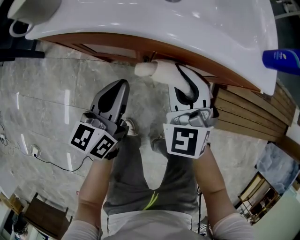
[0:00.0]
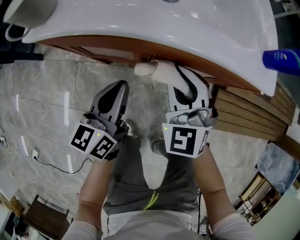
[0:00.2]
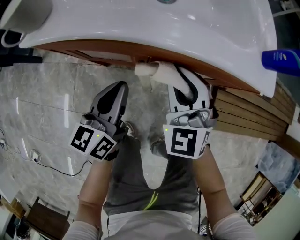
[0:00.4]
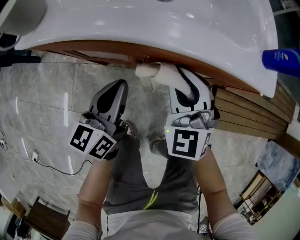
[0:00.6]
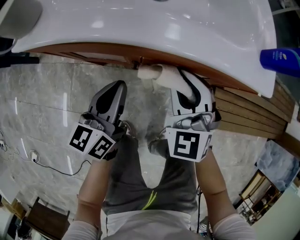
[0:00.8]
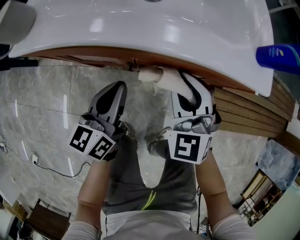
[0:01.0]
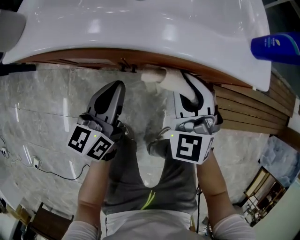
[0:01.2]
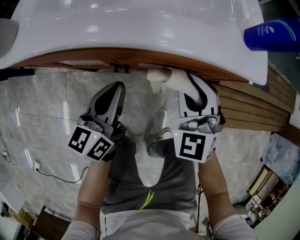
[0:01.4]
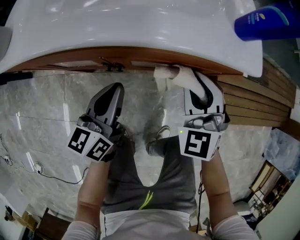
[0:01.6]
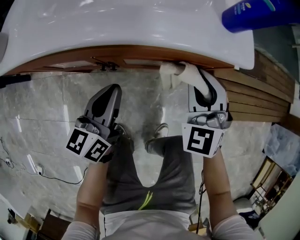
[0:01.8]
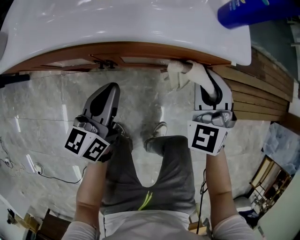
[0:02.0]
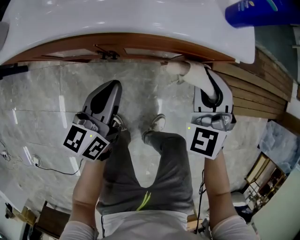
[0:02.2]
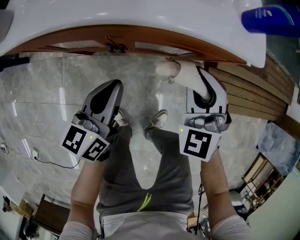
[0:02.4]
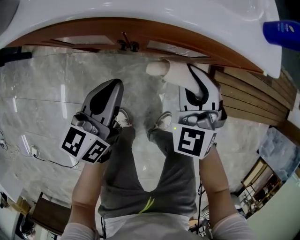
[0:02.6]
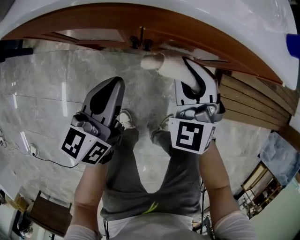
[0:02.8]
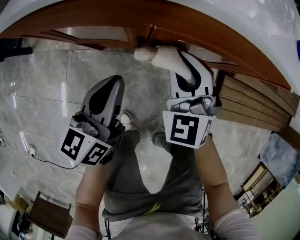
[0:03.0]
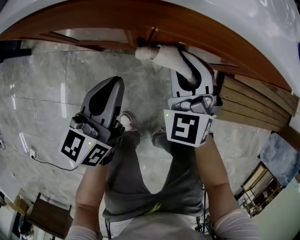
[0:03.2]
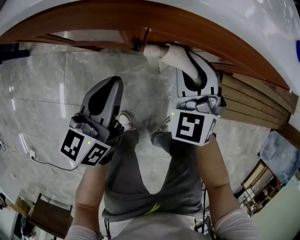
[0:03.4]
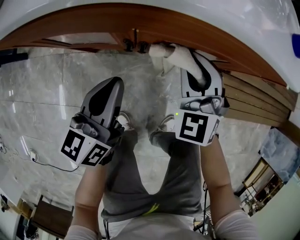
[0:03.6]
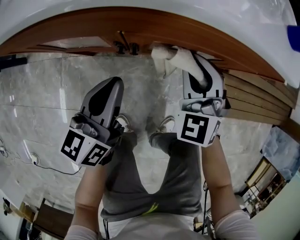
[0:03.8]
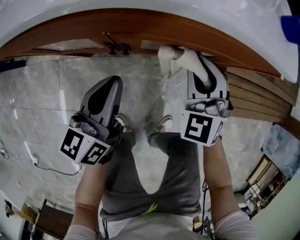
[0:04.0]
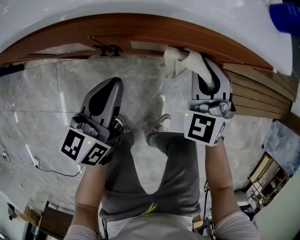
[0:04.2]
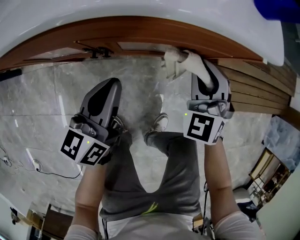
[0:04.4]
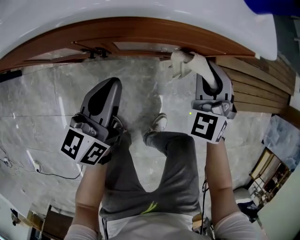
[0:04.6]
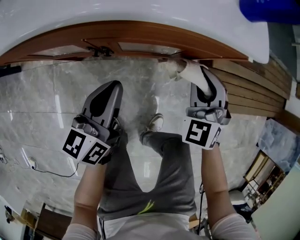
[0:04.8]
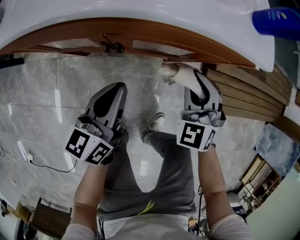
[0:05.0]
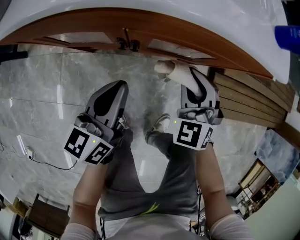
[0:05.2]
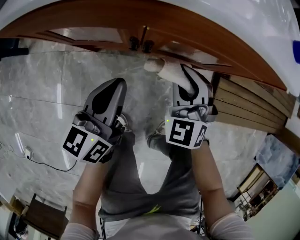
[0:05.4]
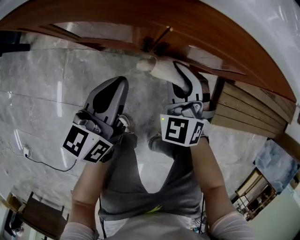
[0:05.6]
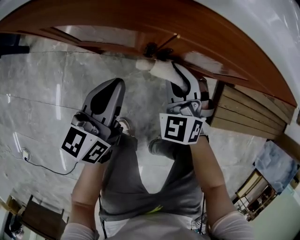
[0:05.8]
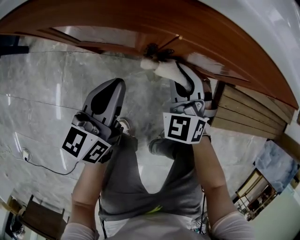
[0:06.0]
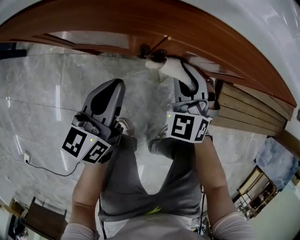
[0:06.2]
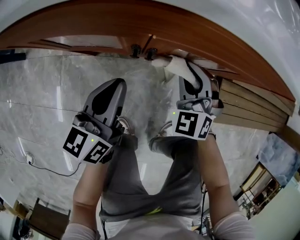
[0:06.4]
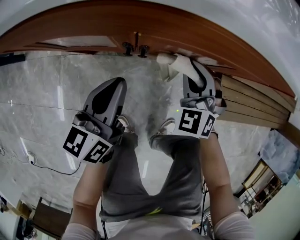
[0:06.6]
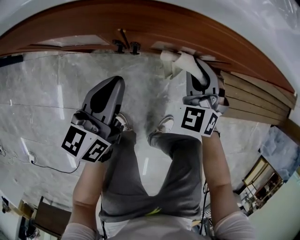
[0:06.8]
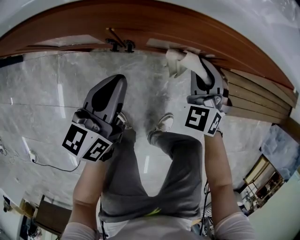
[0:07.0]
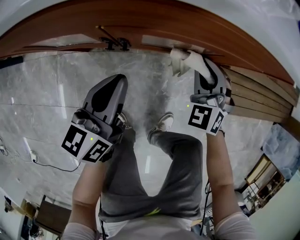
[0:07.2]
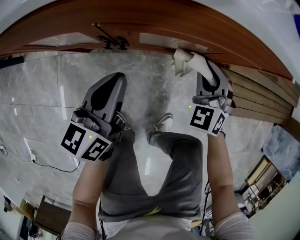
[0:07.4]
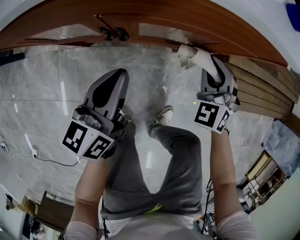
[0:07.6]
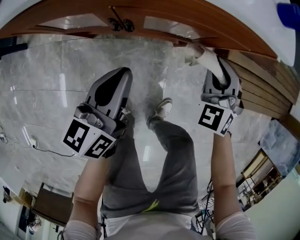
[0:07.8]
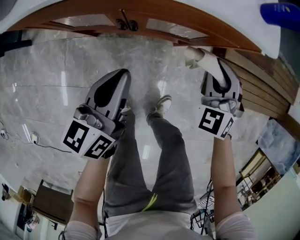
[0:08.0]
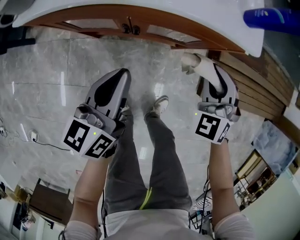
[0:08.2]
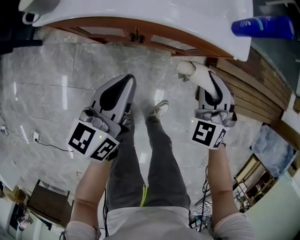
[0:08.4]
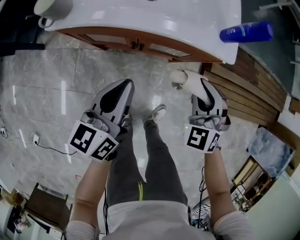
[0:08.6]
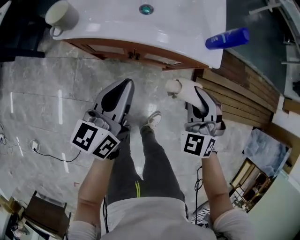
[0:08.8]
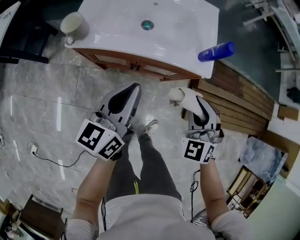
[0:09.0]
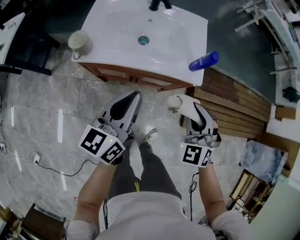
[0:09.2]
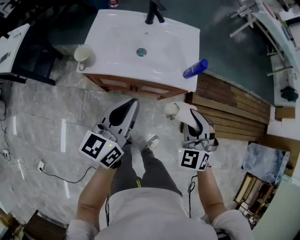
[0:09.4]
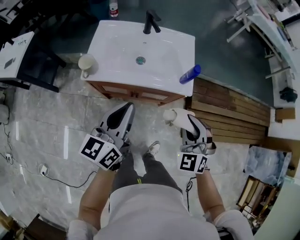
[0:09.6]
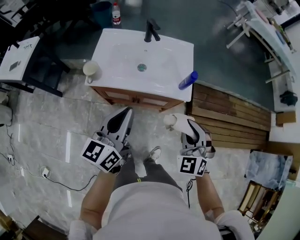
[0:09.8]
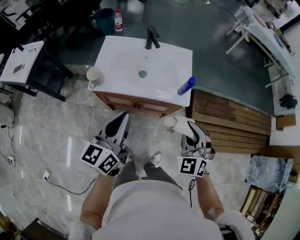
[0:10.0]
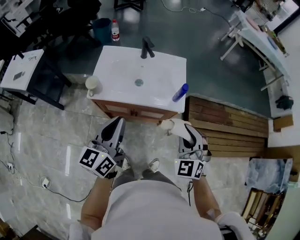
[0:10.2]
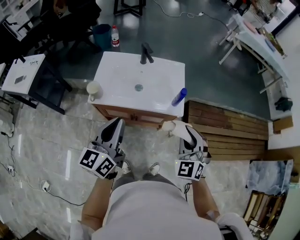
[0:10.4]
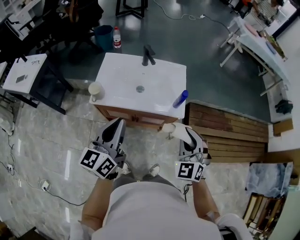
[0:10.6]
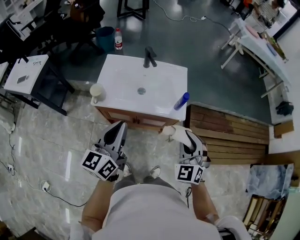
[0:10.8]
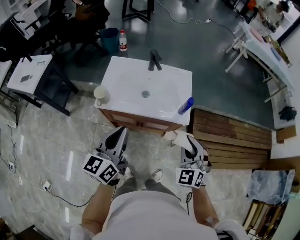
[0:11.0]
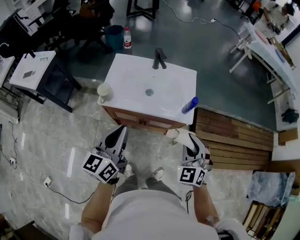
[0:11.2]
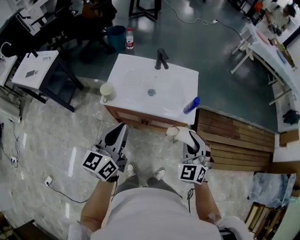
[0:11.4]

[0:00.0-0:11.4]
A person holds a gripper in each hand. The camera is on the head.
0:00.0 to 0:01.4: Both grippers move to the right, some 10 cm.
0:01.4 to 0:02.8: The left gripper moves to the left and backward, approximately 5 cm, while the right gripper shifts approximately 10 cm to the left and downward.
0:02.8 to 0:04.2: The left gripper shifts roughly 5 cm to the right, while the right gripper moves to the right, about 15 cm.
0:04.2 to 0:05.6: The left gripper heads to the left, covering some 10 cm. The right gripper shifts some 15 cm to the left.
0:05.6 to 0:07.2: The left gripper is displaced to the right by some 10 cm, while the right gripper travels to the right by about 15 cm.
0:07.2 to 0:08.6: Both grippers move upward, about 30 cm.
0:08.6 to 0:10.0: The grippers both shift upward by roughly 30 cm.
0:10.0 to 0:11.4: The left gripper changes place by some 5 cm.

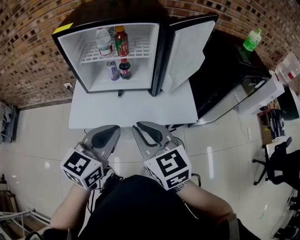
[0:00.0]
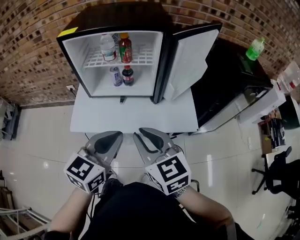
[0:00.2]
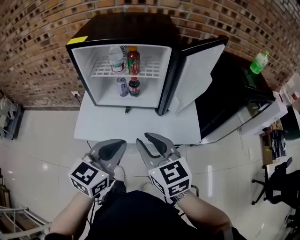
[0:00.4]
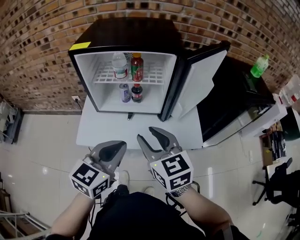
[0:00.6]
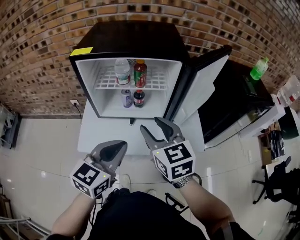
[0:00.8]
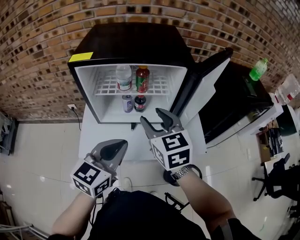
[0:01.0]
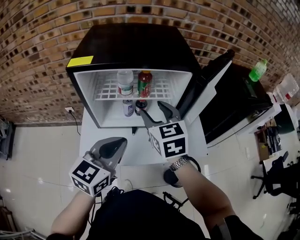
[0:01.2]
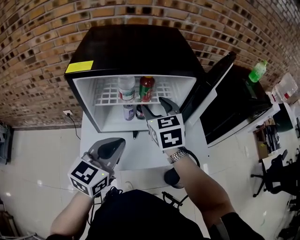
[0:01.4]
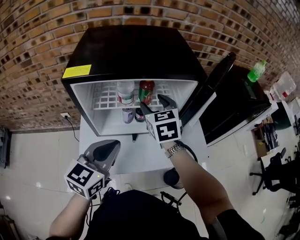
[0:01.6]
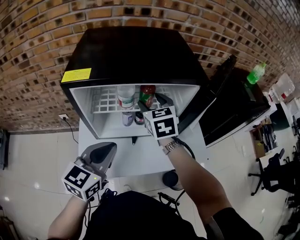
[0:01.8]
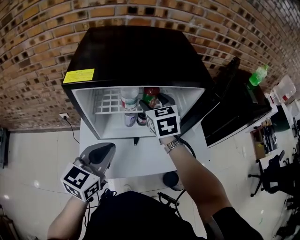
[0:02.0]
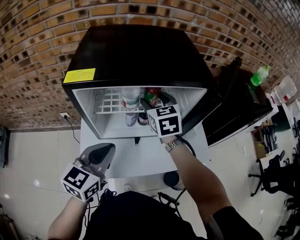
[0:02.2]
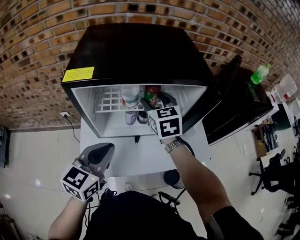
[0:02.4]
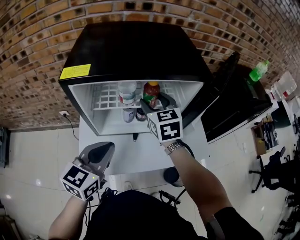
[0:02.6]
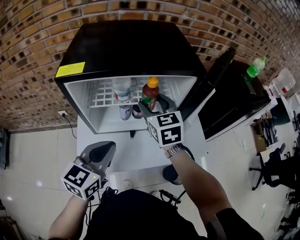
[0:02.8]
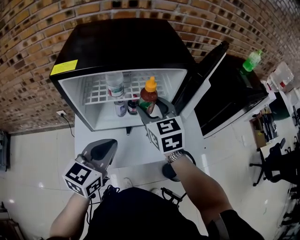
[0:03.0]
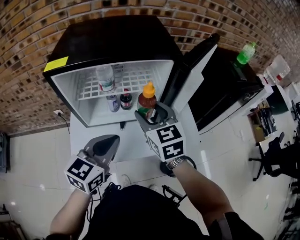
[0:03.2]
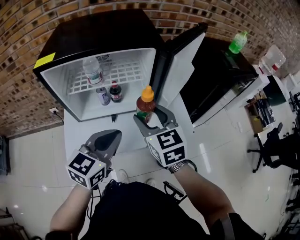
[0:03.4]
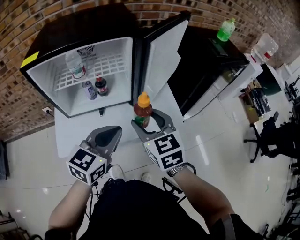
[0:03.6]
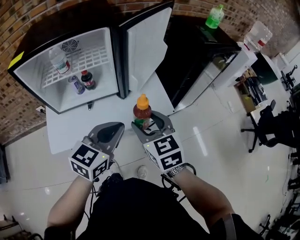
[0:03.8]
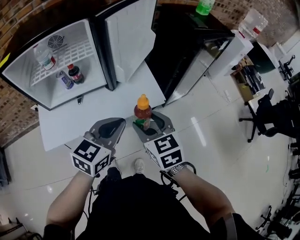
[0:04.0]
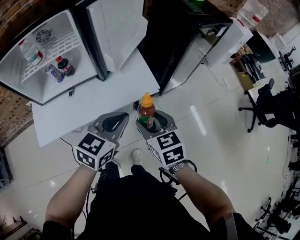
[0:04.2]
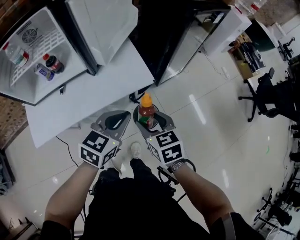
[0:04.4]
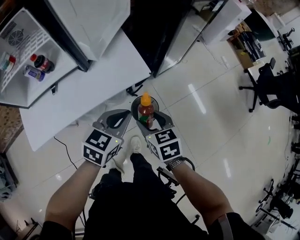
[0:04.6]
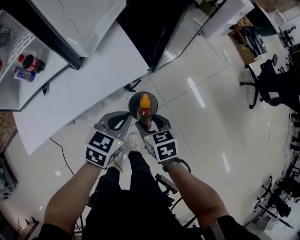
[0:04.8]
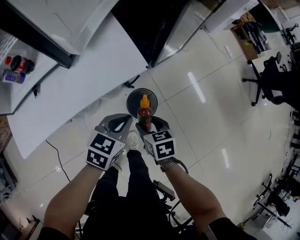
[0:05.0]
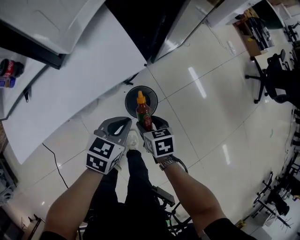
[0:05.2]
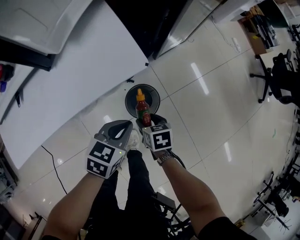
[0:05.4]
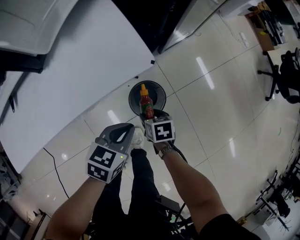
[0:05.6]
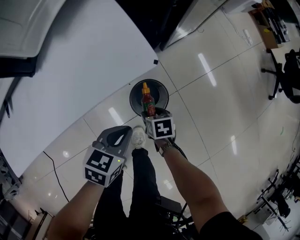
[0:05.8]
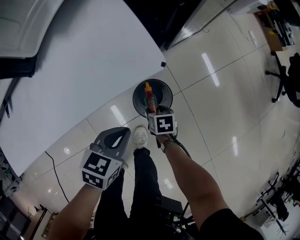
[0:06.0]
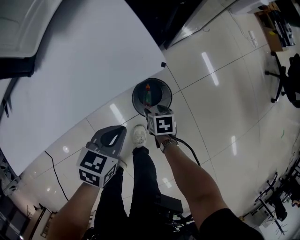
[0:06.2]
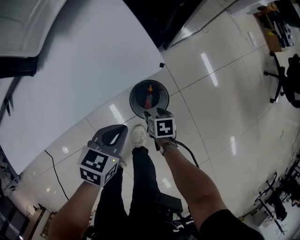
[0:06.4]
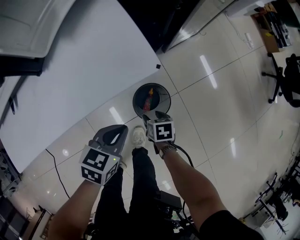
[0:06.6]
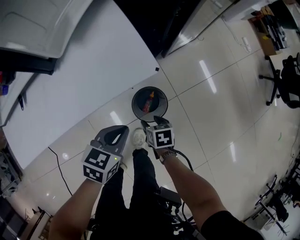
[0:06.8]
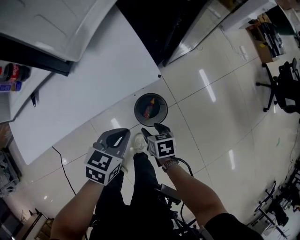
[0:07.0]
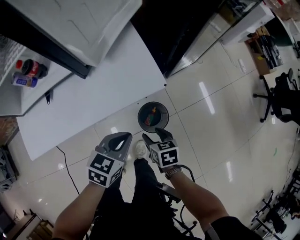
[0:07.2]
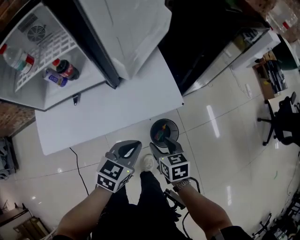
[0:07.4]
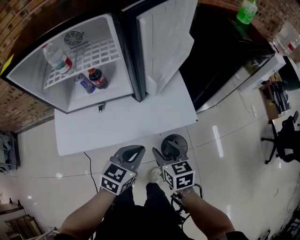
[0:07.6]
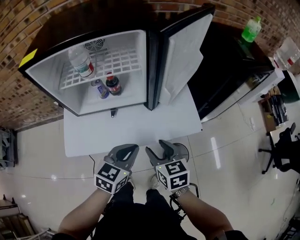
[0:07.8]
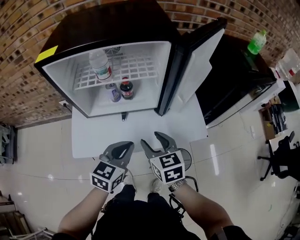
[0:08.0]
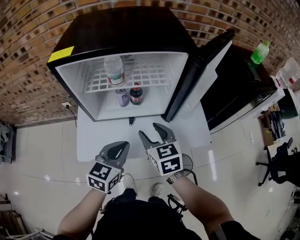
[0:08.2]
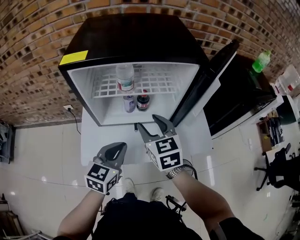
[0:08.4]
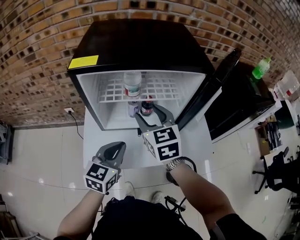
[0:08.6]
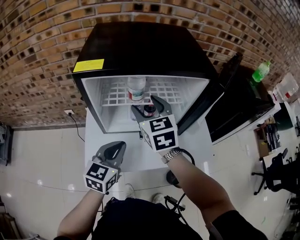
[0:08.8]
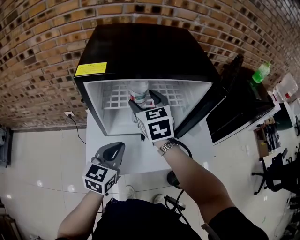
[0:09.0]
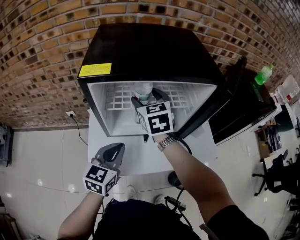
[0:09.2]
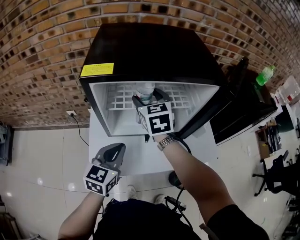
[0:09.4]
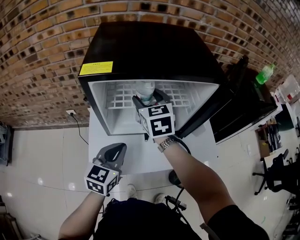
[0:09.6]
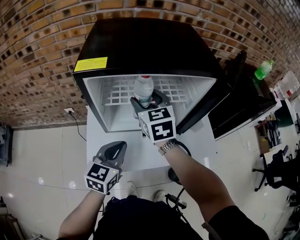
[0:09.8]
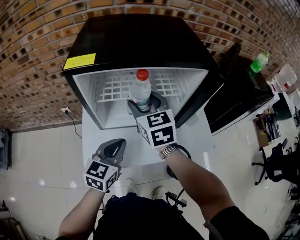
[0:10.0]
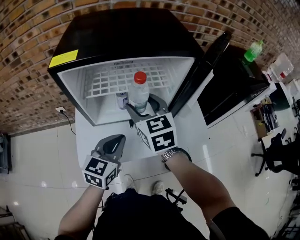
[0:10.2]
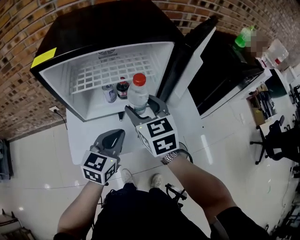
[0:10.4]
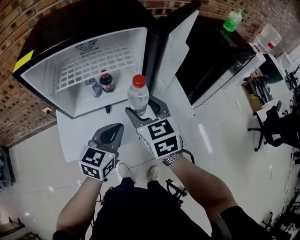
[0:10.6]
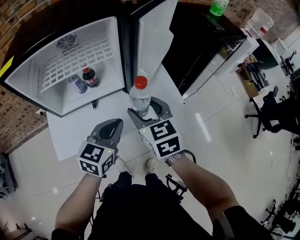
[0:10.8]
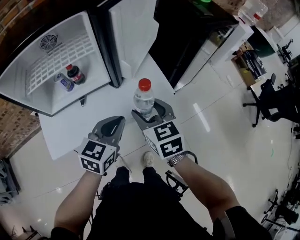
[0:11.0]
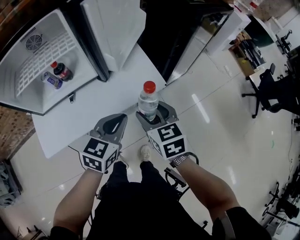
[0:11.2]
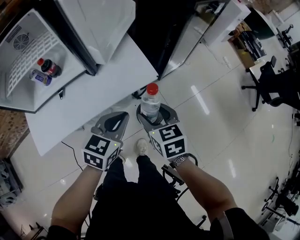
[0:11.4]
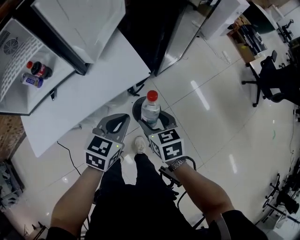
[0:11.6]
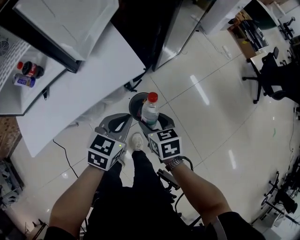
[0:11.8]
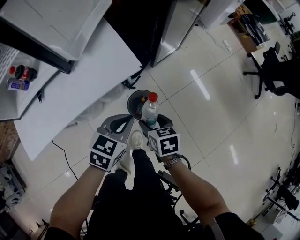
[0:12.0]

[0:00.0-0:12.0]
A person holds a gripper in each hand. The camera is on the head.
0:00.0 to 0:01.6: The left gripper moves forward and to the left, about 20 cm; the right gripper is displaced forward by approximately 30 cm, changes its angle by about 30 degrees, and opens up.
0:01.6 to 0:03.0: The right gripper ends up about 5 cm from where it was.
0:03.0 to 0:04.4: The right gripper shifts about 50 cm to the right, backward and downward, and changes its angle by roughly 30 degrees, while the left gripper shifts some 35 cm to the right, and swivels about 30 degrees.
0:04.4 to 0:06.0: The right gripper shifts about 50 cm downward, and rotates about 40 degrees. Meanwhile the left gripper heads downward, covering roughly 30 cm, and turns by approximately 30 degrees.
0:06.0 to 0:07.6: The left gripper goes about 30 cm upward and to the left, and changes its angle by about 20 degrees. Meanwhile the right gripper is displaced upward by roughly 40 cm, and tips its fingers upward by approximately 30 degrees.
0:07.6 to 0:09.0: The left gripper shifts roughly 35 cm to the left and upward, and changes its angle by some 20 degrees. Meanwhile the right gripper moves to the left, forward and upward, some 50 cm, and rotates roughly 30 degrees.
0:09.0 to 0:10.4: The left gripper moves to the right, some 10 cm; the right gripper travels to the right and backward by about 15 cm.
0:10.4 to 0:12.0: Both grippers travel together to the right and downward, roughly 50 cm. The right gripper rotates approximately 50 degrees; the left gripper rotates some 30 degrees.
